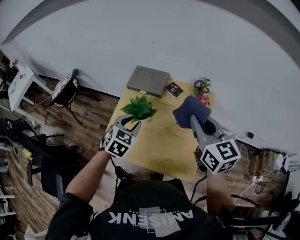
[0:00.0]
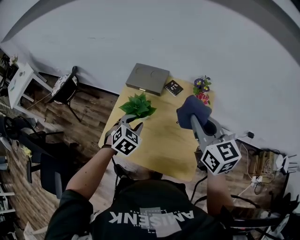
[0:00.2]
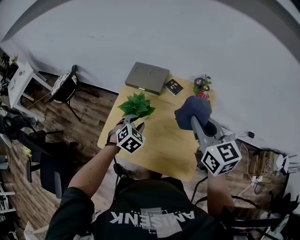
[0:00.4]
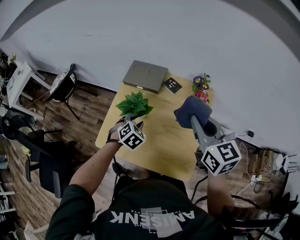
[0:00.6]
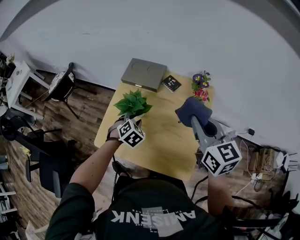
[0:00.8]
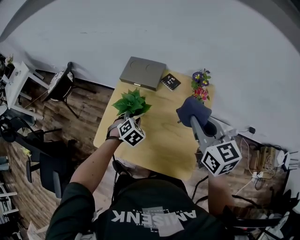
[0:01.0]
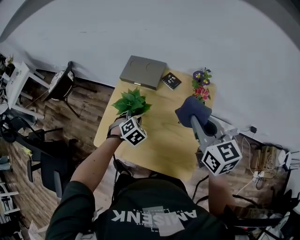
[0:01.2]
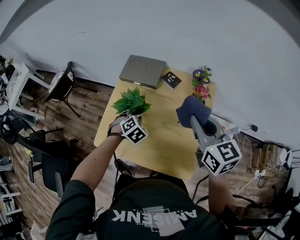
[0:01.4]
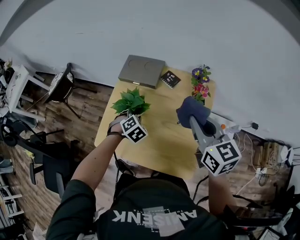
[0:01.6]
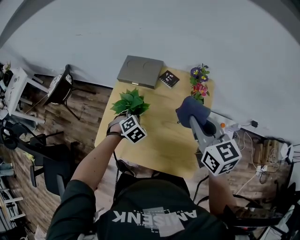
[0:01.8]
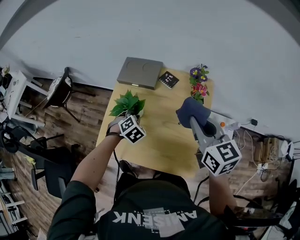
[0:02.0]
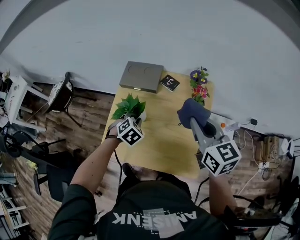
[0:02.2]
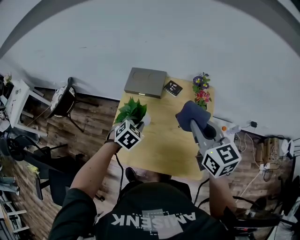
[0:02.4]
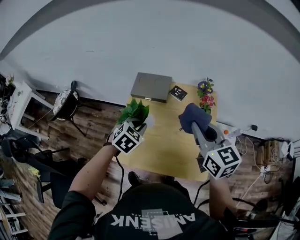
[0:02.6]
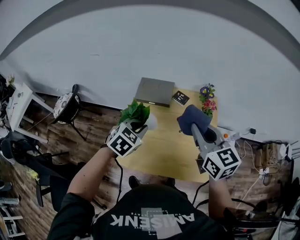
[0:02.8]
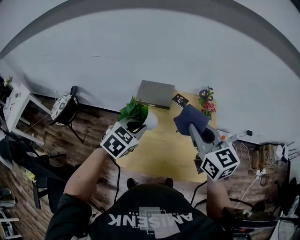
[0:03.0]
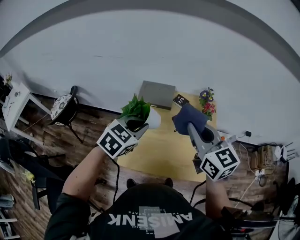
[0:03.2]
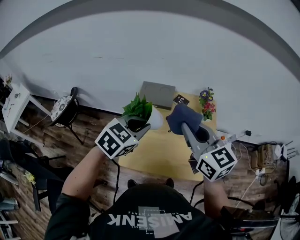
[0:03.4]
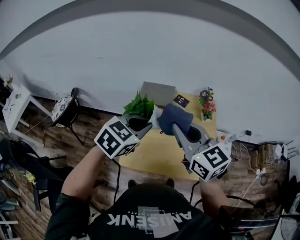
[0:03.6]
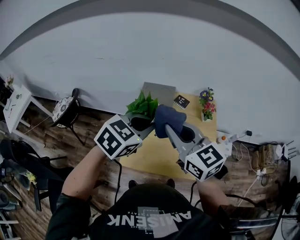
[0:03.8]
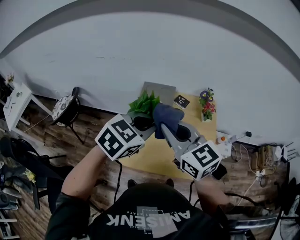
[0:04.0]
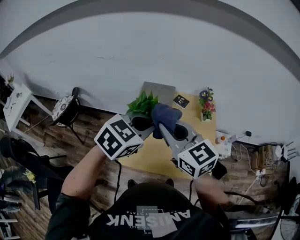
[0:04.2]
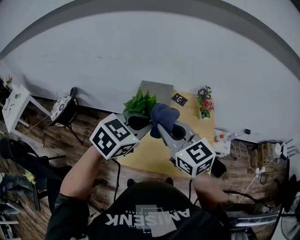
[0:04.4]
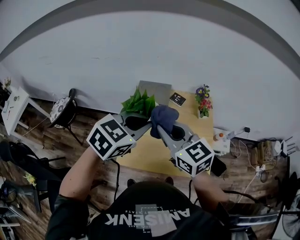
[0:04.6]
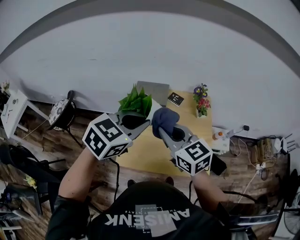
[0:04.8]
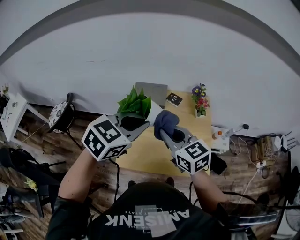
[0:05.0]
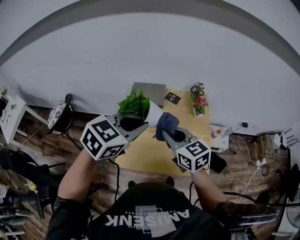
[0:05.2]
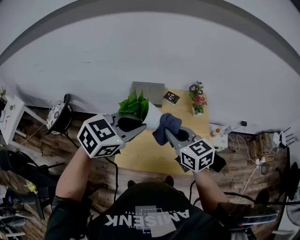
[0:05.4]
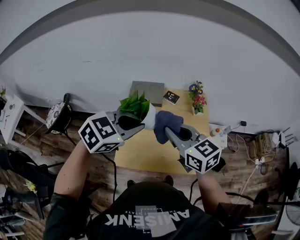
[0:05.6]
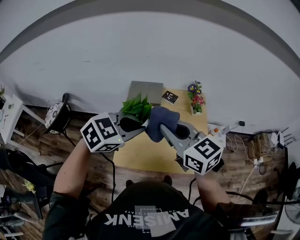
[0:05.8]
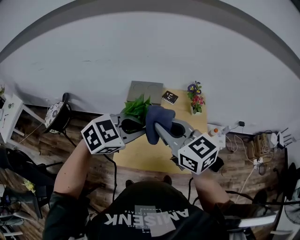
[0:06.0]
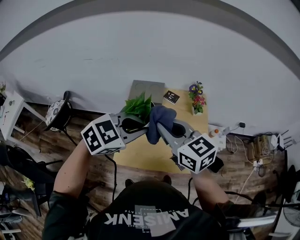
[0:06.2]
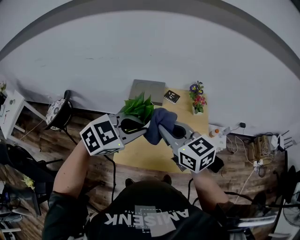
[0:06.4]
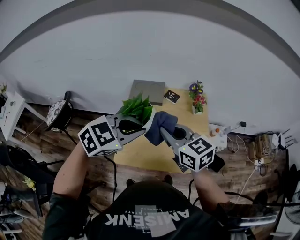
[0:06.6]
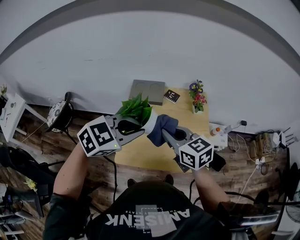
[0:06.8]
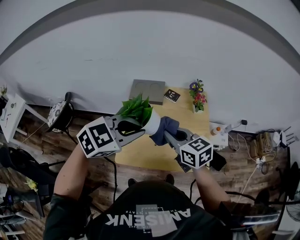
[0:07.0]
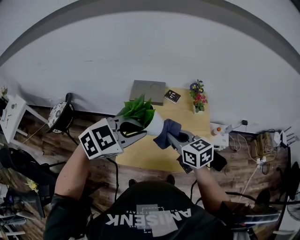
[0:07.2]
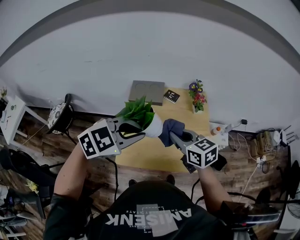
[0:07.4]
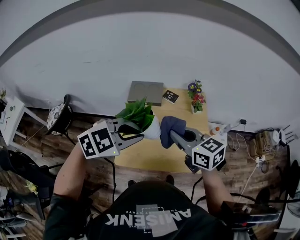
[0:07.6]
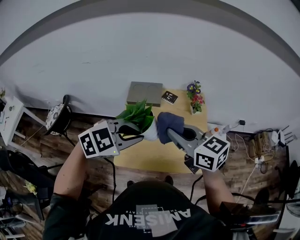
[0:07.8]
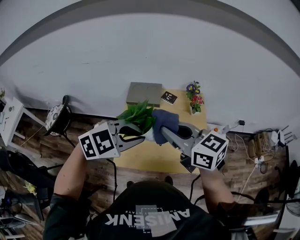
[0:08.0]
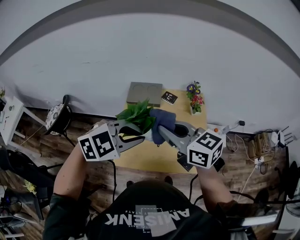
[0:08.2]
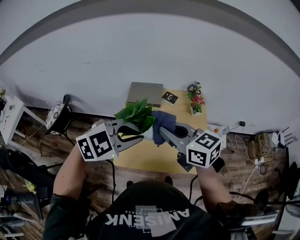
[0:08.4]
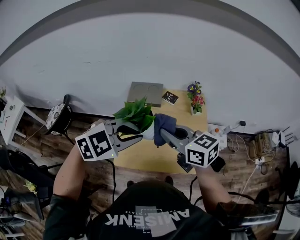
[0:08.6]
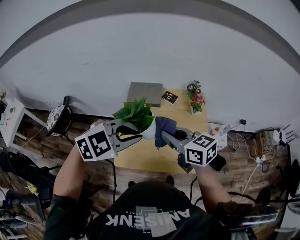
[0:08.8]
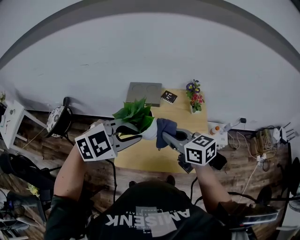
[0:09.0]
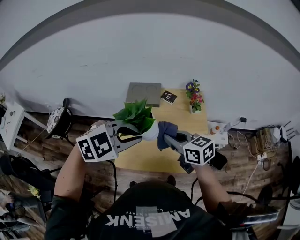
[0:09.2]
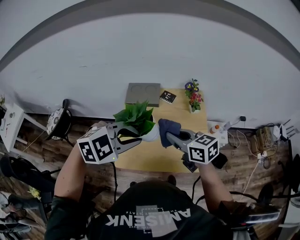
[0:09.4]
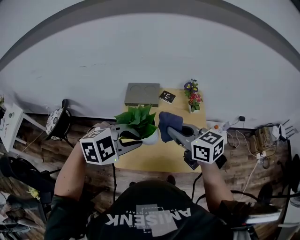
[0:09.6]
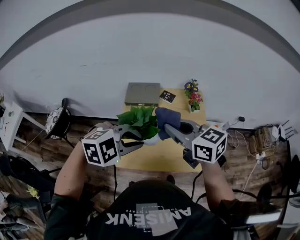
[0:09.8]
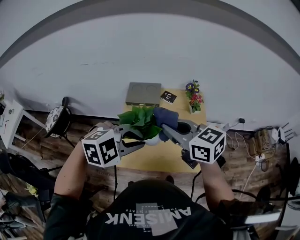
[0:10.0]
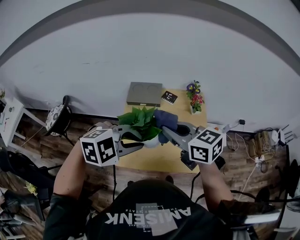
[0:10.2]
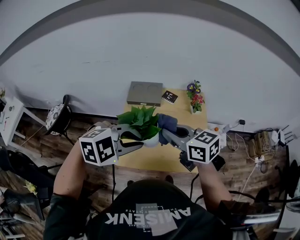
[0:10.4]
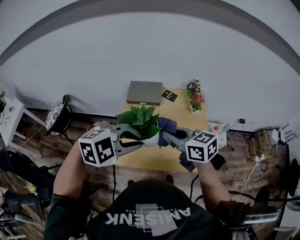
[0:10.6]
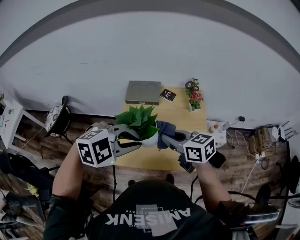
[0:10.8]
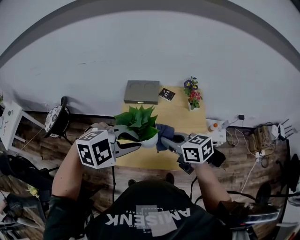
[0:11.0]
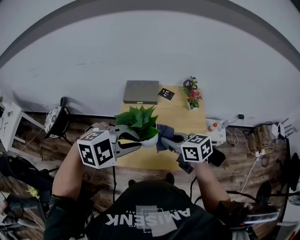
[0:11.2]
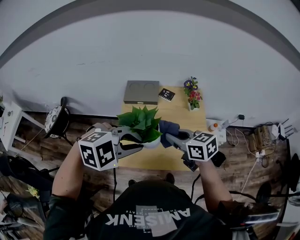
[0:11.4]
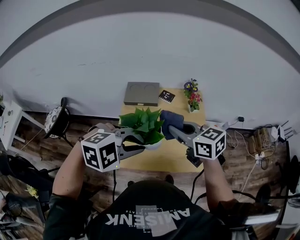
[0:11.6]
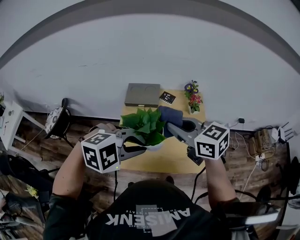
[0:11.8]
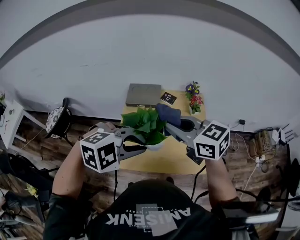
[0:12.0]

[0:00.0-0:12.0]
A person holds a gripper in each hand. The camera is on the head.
0:00.0 to 0:01.6: The right gripper moves downward, some 5 cm, while the left gripper heads downward, covering about 15 cm, and swivels some 30 degrees.
0:01.6 to 0:03.0: The right gripper is displaced to the left and upward by approximately 20 cm. The left gripper travels upward by about 25 cm, and rotates about 30 degrees.
0:03.0 to 0:04.4: The right gripper moves to the left, about 10 cm; the left gripper goes some 10 cm upward.
0:04.4 to 0:06.0: The right gripper travels downward and back again, some 5 cm each way. The left gripper turns by some 20 degrees.
0:06.0 to 0:07.6: The right gripper goes roughly 10 cm downward and to the right.
0:07.6 to 0:09.0: The right gripper moves about 5 cm upward and comes back.
0:09.0 to 0:10.4: The right gripper moves about 5 cm upward and comes back.
0:10.4 to 0:12.0: The right gripper travels upward by roughly 5 cm.

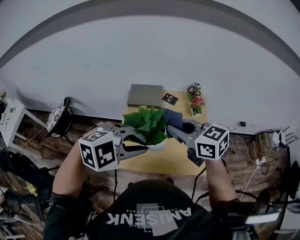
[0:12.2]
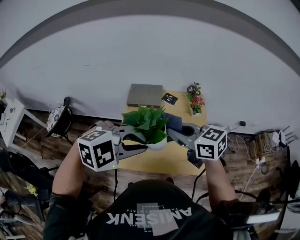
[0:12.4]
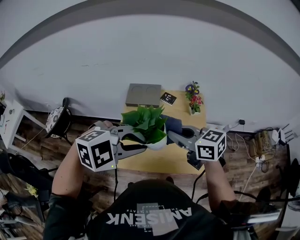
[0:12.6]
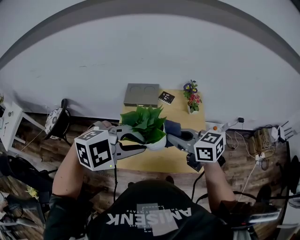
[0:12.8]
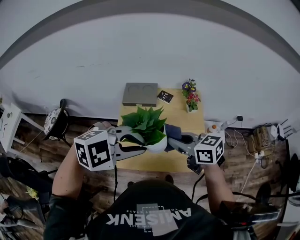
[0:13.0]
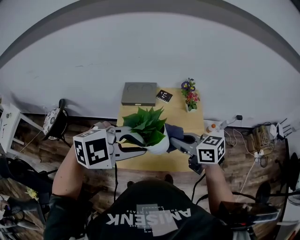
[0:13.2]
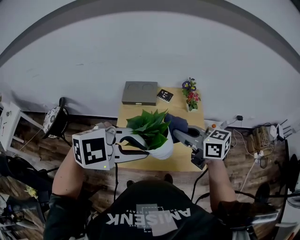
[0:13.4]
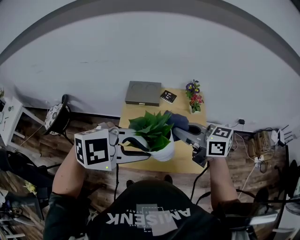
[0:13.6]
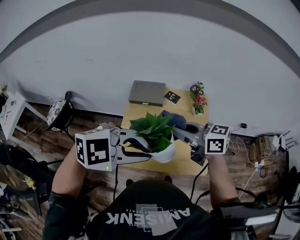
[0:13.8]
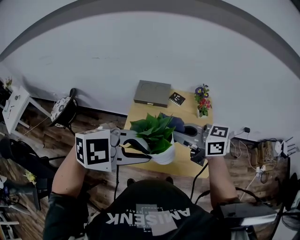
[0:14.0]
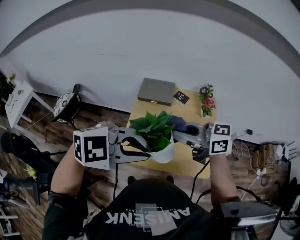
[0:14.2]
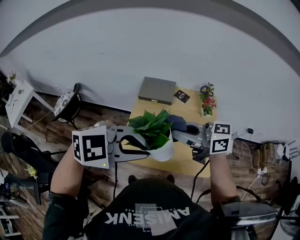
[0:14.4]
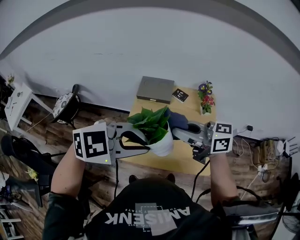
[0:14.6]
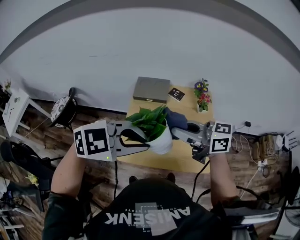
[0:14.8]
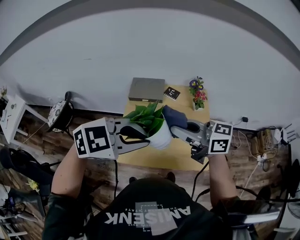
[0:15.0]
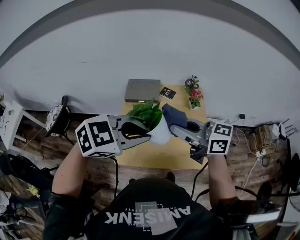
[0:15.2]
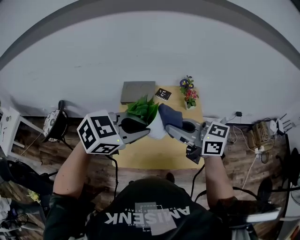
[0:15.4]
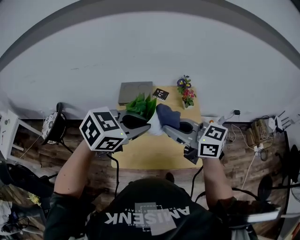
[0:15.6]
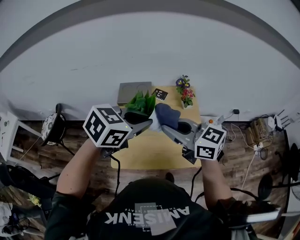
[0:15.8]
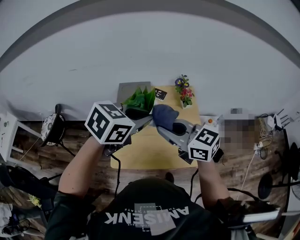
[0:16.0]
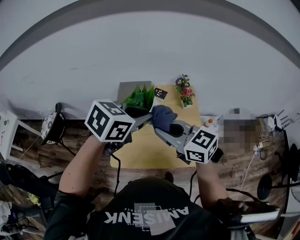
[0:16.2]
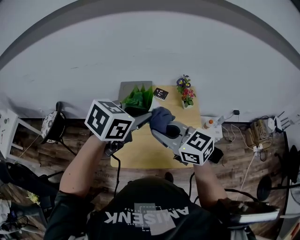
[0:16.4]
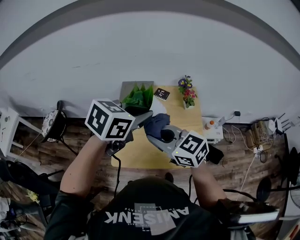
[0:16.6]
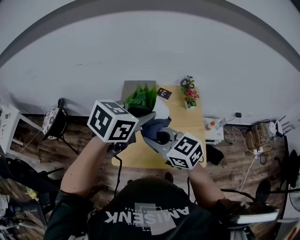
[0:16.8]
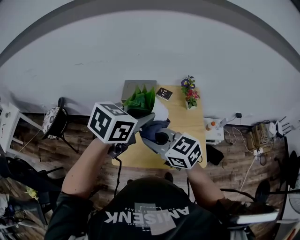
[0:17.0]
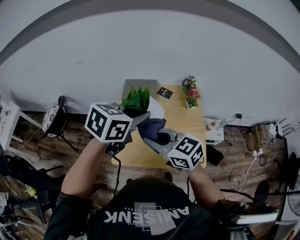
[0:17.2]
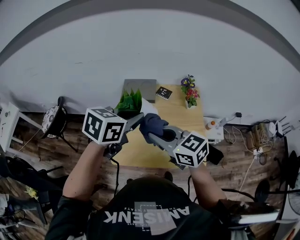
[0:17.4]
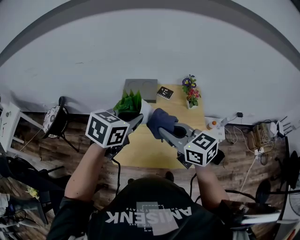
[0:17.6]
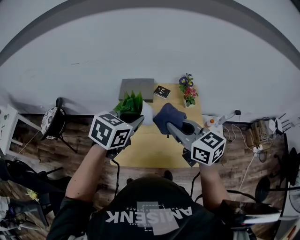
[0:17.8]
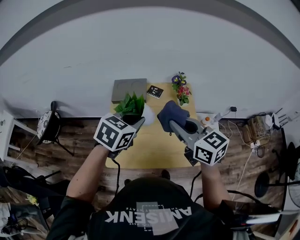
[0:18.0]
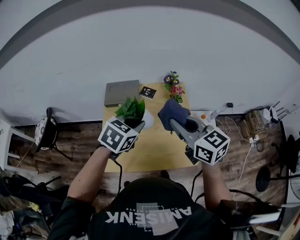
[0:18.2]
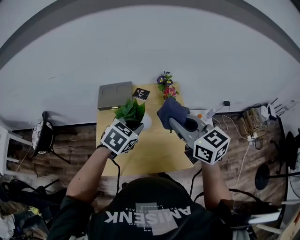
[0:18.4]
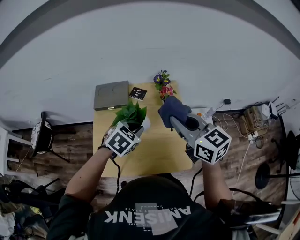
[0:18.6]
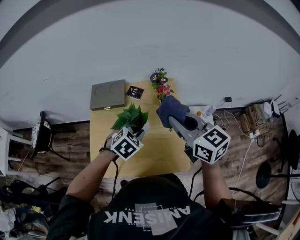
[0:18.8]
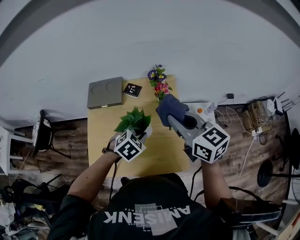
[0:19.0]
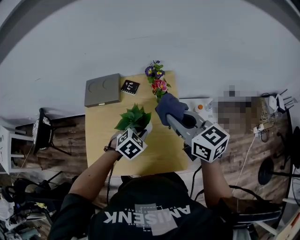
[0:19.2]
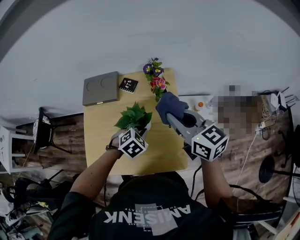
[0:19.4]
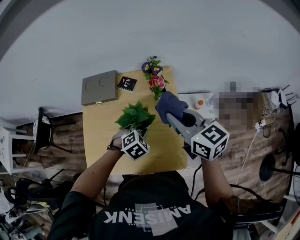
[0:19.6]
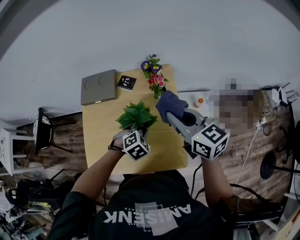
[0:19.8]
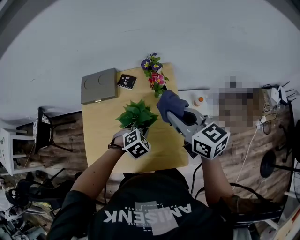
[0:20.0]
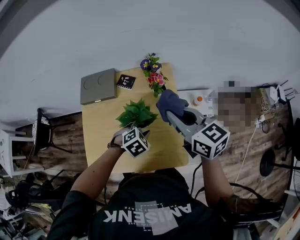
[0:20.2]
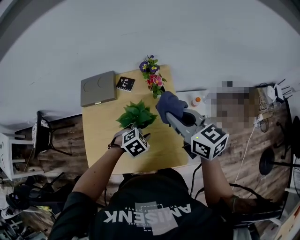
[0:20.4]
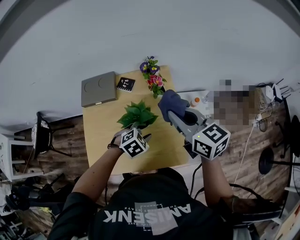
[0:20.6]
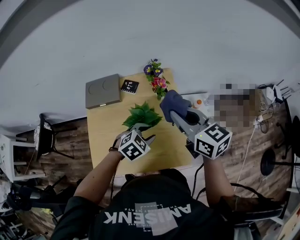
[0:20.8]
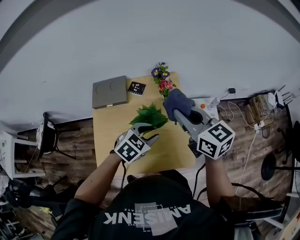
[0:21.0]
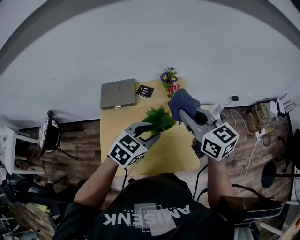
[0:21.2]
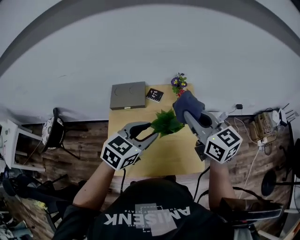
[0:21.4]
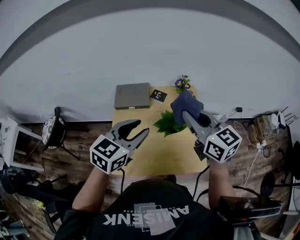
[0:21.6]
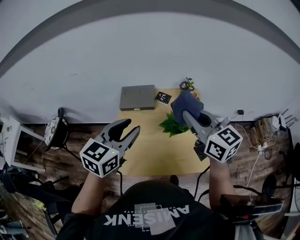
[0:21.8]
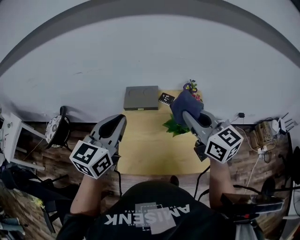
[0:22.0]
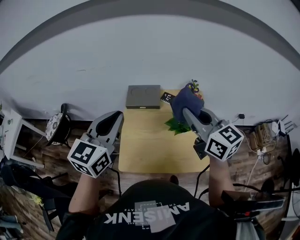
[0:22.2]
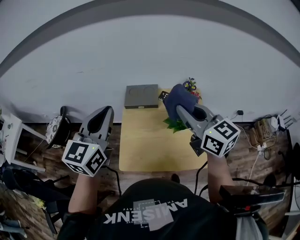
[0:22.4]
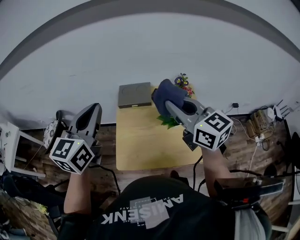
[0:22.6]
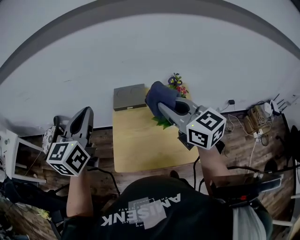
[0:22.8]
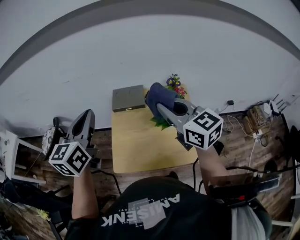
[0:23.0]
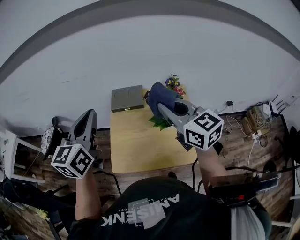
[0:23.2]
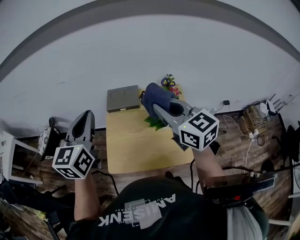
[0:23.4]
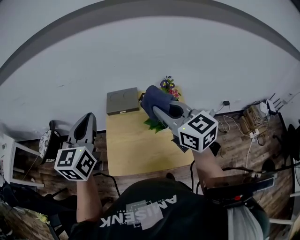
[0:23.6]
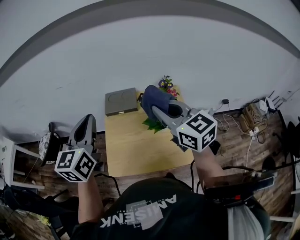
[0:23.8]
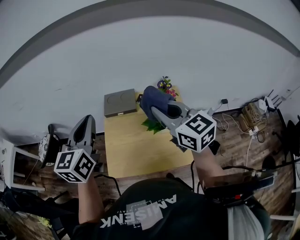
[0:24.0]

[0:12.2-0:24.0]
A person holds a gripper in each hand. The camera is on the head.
0:12.2 to 0:13.6: The right gripper reaches some 10 cm downward, then returns.
0:13.6 to 0:15.2: The left gripper swivels roughly 20 degrees.
0:15.2 to 0:16.6: The left gripper changes place by approximately 10 cm, and swivels about 30 degrees. The right gripper moves about 10 cm, and changes its angle by about 20 degrees.
0:16.6 to 0:18.2: The right gripper heads to the right and forward, covering about 15 cm, and turns by about 30 degrees; the left gripper goes some 10 cm downward.
0:18.2 to 0:19.6: The left gripper shifts about 25 cm downward and to the right, and rotates approximately 30 degrees. The right gripper travels to the right, forward and downward by about 20 cm.
0:19.6 to 0:21.0: The right gripper goes about 5 cm upward; the left gripper shifts roughly 10 cm upward, rotates roughly 20 degrees, and opens.
0:21.0 to 0:22.6: The right gripper moves to the left, upward and backward, roughly 25 cm. Meanwhile the left gripper moves to the left and upward, approximately 40 cm, tips its fingers upward by about 40 degrees, and closes.
0:22.6 to 0:24.0: The grippers stay close to where they were, moving slightly.
